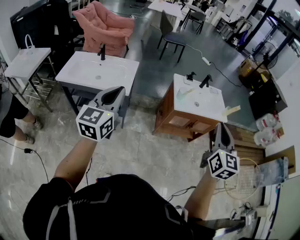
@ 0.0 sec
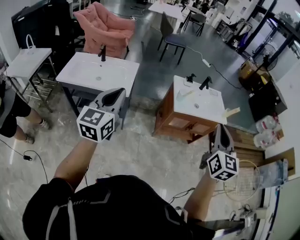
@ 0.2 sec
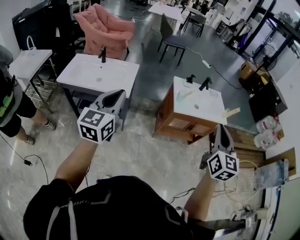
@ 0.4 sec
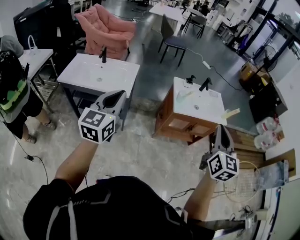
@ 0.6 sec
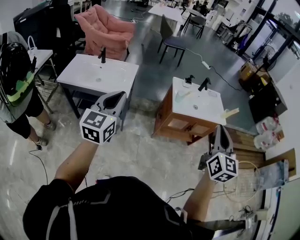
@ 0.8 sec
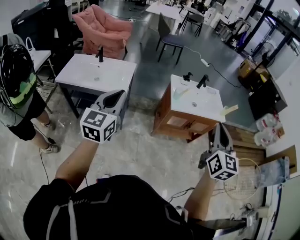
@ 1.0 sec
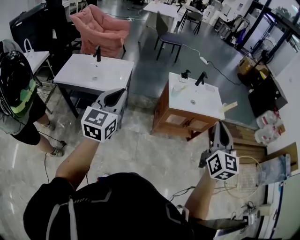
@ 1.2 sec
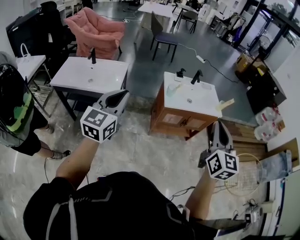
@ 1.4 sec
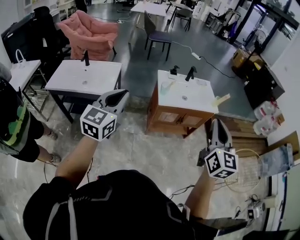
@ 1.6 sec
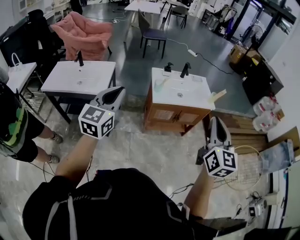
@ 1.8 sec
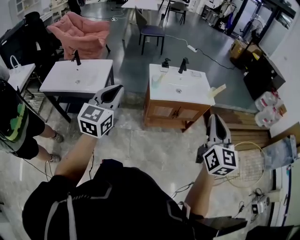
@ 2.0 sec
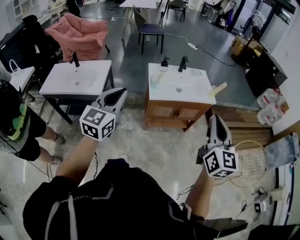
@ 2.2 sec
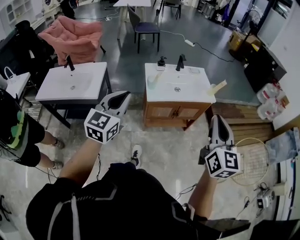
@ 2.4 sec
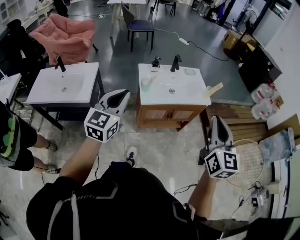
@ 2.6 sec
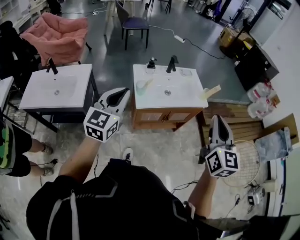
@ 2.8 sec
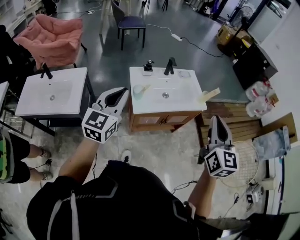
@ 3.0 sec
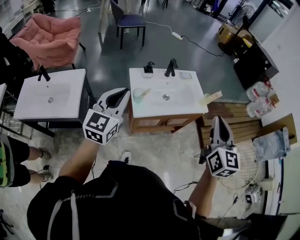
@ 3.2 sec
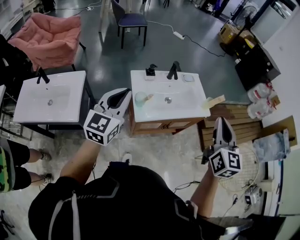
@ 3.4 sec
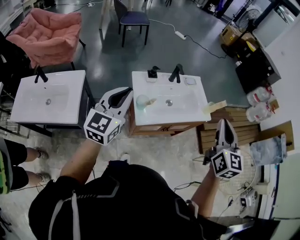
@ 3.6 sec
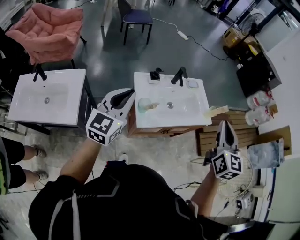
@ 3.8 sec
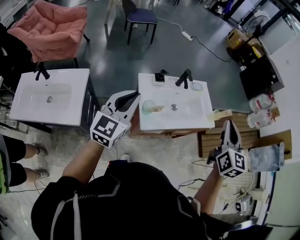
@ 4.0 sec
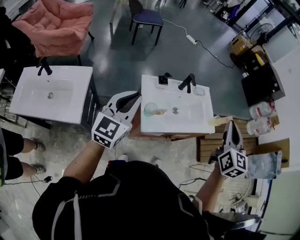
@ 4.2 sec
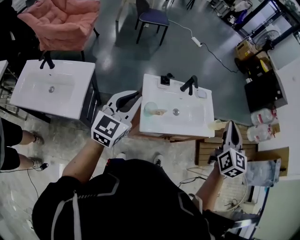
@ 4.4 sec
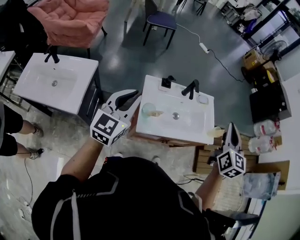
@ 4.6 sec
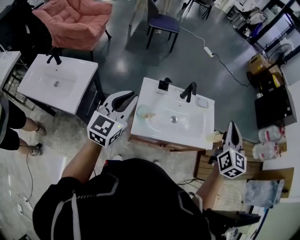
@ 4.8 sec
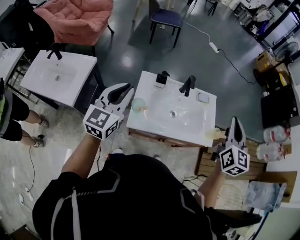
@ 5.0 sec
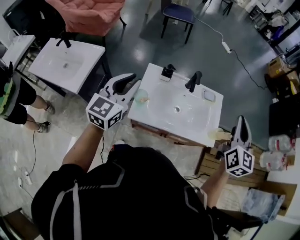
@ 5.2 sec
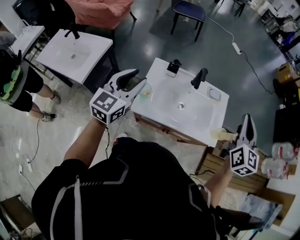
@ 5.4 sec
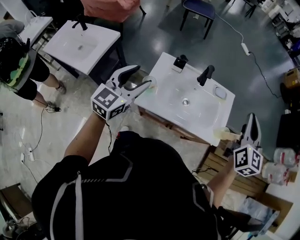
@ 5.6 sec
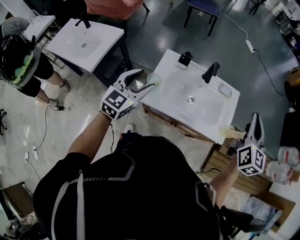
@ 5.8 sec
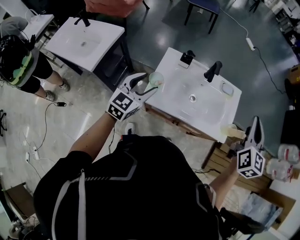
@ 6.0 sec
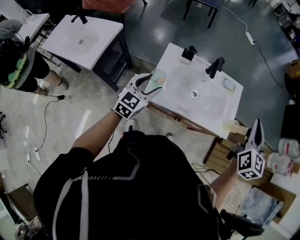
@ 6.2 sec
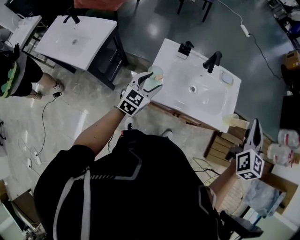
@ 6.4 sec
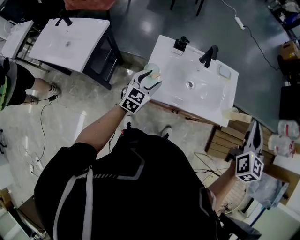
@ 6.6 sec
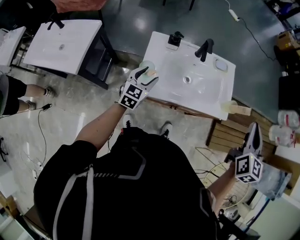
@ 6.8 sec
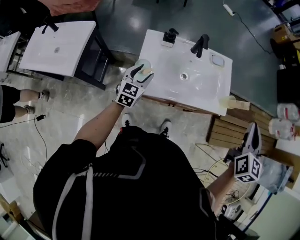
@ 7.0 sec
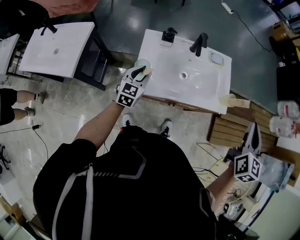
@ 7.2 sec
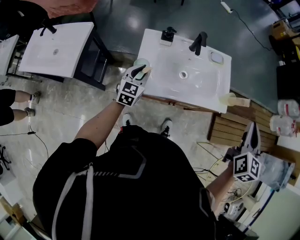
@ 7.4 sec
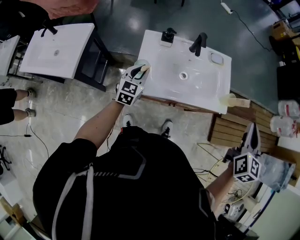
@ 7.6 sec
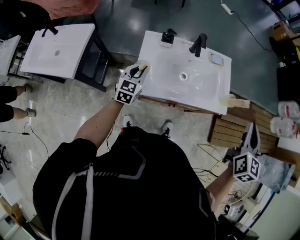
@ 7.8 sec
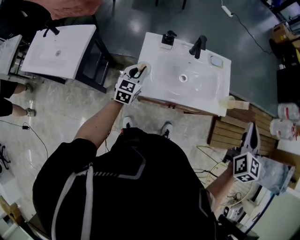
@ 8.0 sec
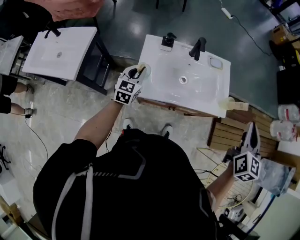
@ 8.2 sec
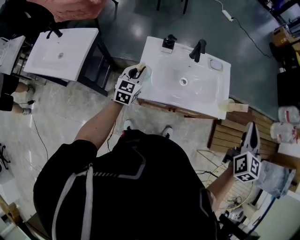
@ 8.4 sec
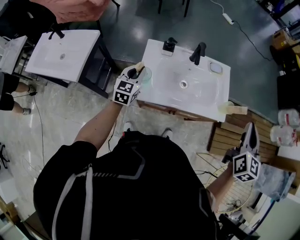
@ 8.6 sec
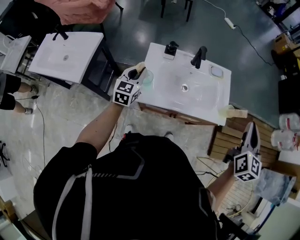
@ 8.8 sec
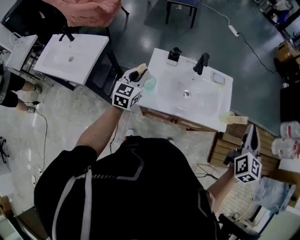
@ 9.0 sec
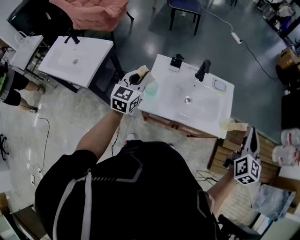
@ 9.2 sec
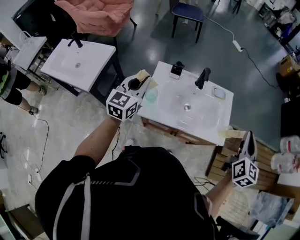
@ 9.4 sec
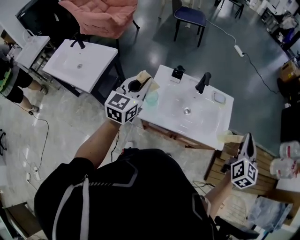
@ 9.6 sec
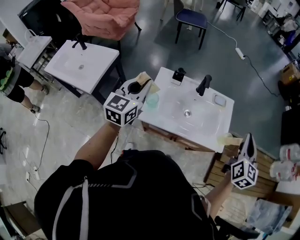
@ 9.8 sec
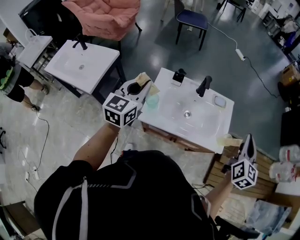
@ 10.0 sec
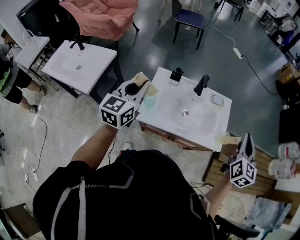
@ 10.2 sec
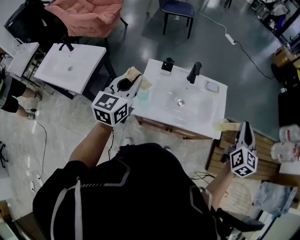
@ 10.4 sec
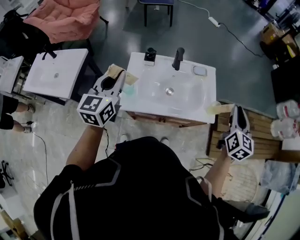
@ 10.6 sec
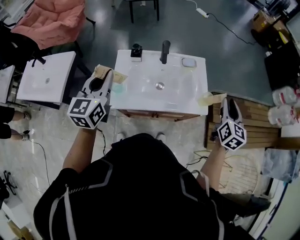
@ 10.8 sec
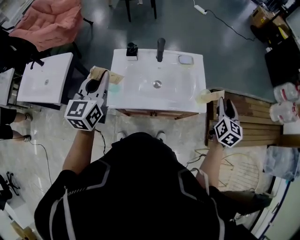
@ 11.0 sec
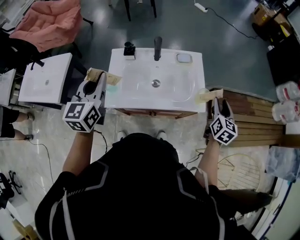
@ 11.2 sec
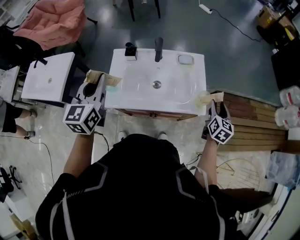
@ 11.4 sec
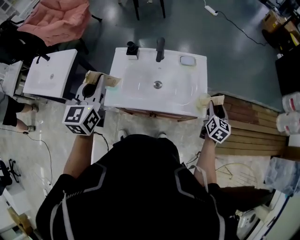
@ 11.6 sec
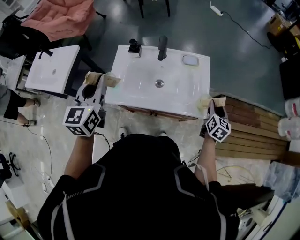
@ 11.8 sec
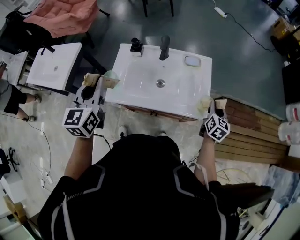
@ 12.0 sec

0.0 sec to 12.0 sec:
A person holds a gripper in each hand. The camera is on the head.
0.0 sec to 1.6 sec: Both grippers move to the right, some 15 cm.
1.6 sec to 3.0 sec: Both grippers travel together forward, about 25 cm.
3.0 sec to 4.4 sec: The left gripper moves forward and to the left, about 15 cm. Meanwhile the right gripper moves forward, approximately 20 cm.
4.4 sec to 6.0 sec: The left gripper goes roughly 15 cm to the right and downward, turns by some 20 degrees, and opens its fingers. The right gripper goes about 20 cm to the right and forward.
6.0 sec to 7.6 sec: The right gripper shifts approximately 10 cm backward and to the right; the left gripper heads downward and forward, covering approximately 15 cm, and closes its fingers.
7.6 sec to 9.0 sec: The left gripper travels upward by roughly 10 cm.
9.0 sec to 10.4 sec: The left gripper moves upward, about 15 cm.
10.4 sec to 12.0 sec: The left gripper goes about 10 cm to the right, while the right gripper moves downward, some 25 cm, and opens, then closes again.

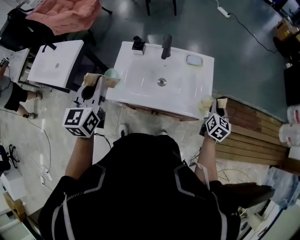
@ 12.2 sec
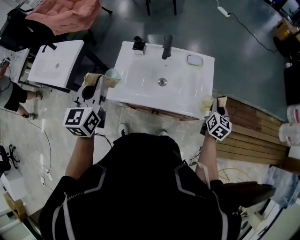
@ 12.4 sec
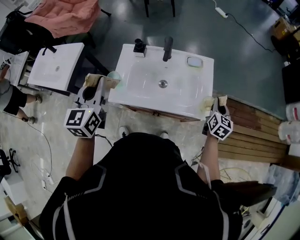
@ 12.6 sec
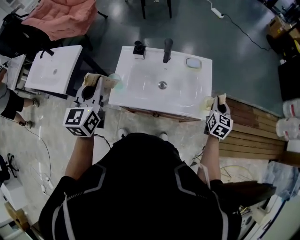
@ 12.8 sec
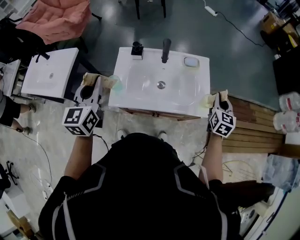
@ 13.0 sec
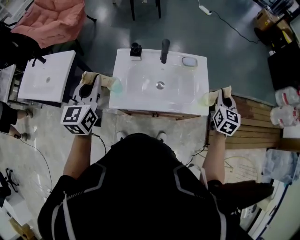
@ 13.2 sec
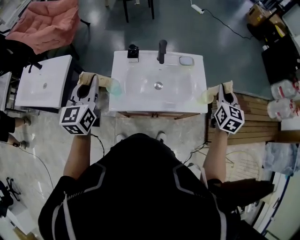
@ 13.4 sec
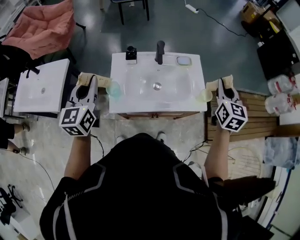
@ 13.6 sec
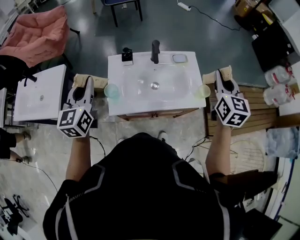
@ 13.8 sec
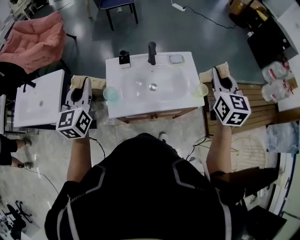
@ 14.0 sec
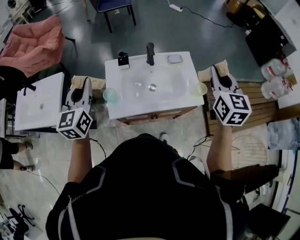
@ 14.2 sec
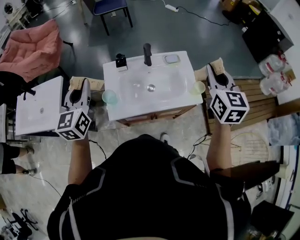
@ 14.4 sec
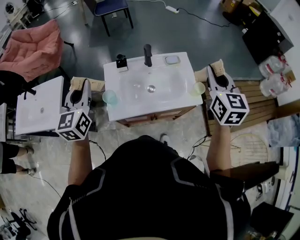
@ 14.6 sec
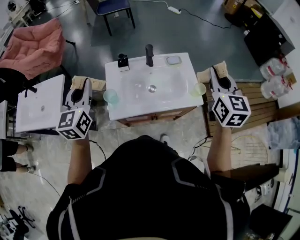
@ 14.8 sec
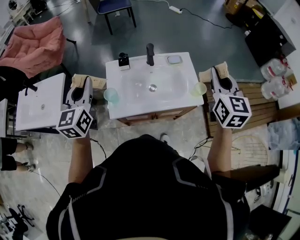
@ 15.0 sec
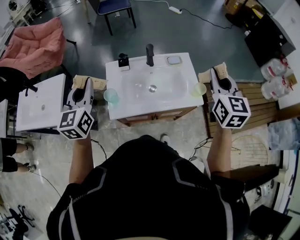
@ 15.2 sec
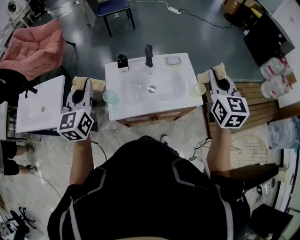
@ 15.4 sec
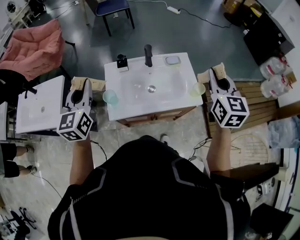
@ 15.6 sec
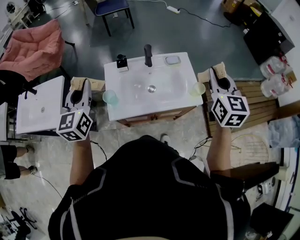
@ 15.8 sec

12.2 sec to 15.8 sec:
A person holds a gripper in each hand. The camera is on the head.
12.2 sec to 14.0 sec: The right gripper heads upward and to the left, covering some 30 cm; the left gripper shifts approximately 10 cm to the left.
14.0 sec to 15.8 sec: The grippers stay close to where they were, moving slightly.

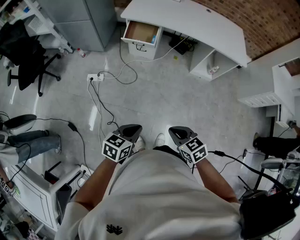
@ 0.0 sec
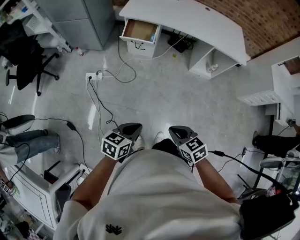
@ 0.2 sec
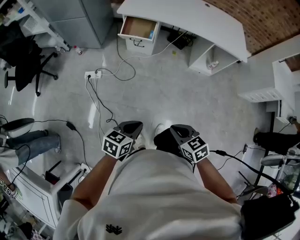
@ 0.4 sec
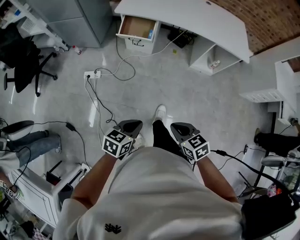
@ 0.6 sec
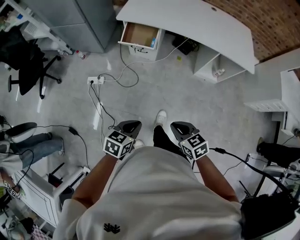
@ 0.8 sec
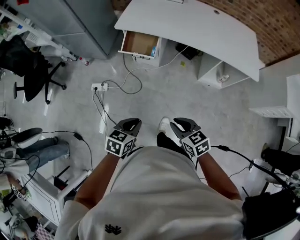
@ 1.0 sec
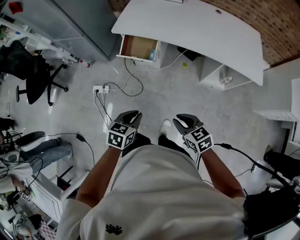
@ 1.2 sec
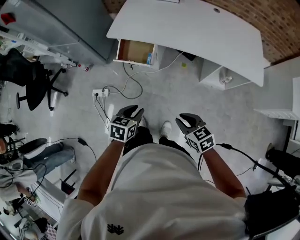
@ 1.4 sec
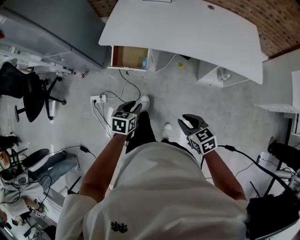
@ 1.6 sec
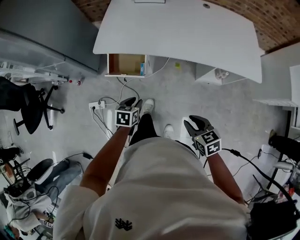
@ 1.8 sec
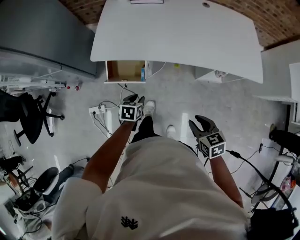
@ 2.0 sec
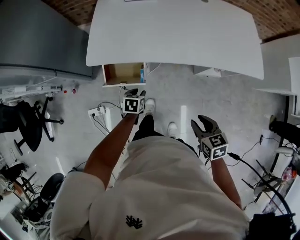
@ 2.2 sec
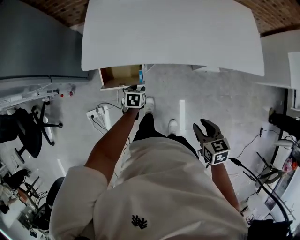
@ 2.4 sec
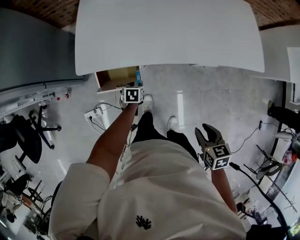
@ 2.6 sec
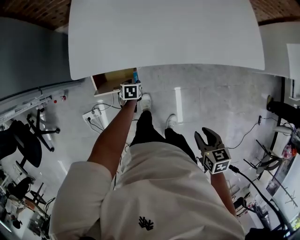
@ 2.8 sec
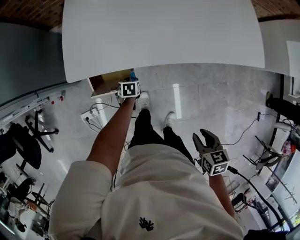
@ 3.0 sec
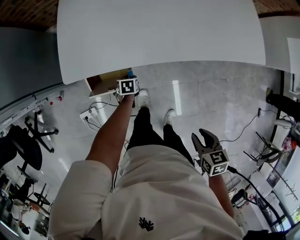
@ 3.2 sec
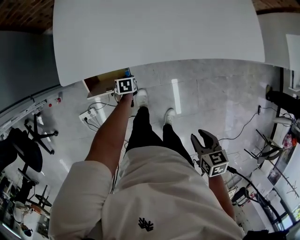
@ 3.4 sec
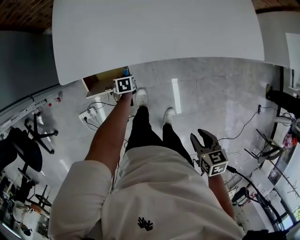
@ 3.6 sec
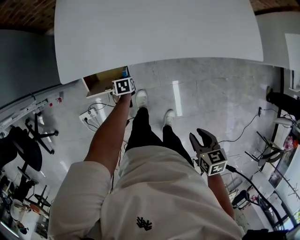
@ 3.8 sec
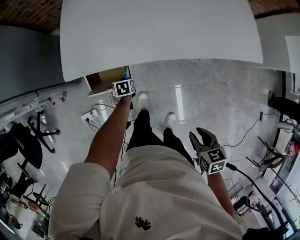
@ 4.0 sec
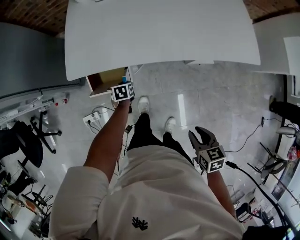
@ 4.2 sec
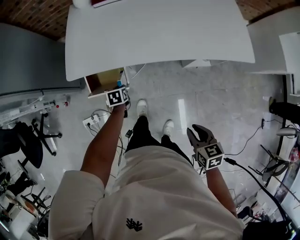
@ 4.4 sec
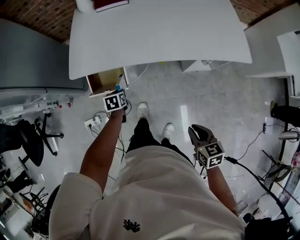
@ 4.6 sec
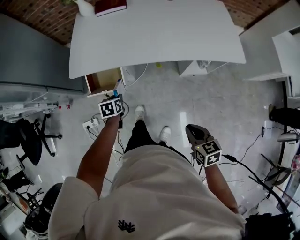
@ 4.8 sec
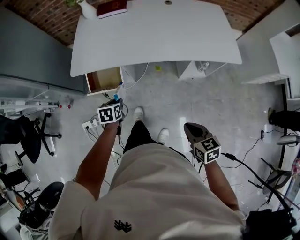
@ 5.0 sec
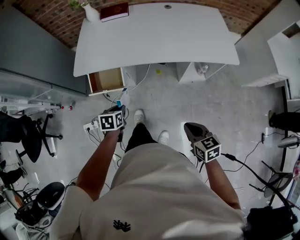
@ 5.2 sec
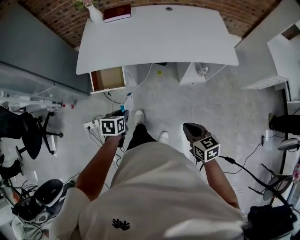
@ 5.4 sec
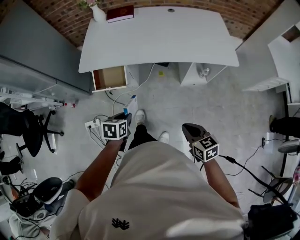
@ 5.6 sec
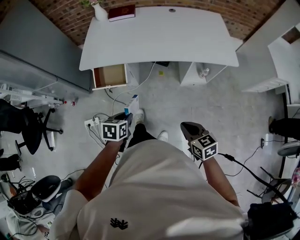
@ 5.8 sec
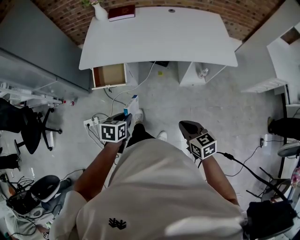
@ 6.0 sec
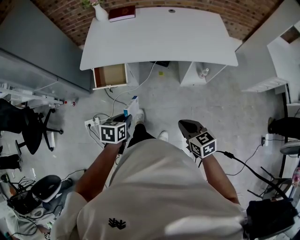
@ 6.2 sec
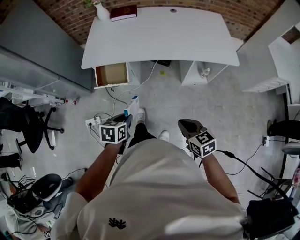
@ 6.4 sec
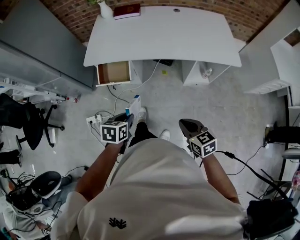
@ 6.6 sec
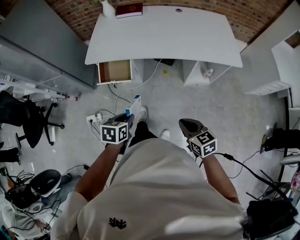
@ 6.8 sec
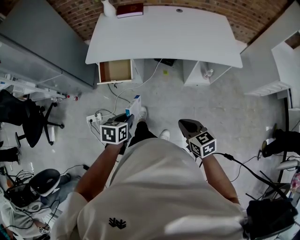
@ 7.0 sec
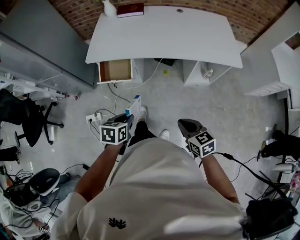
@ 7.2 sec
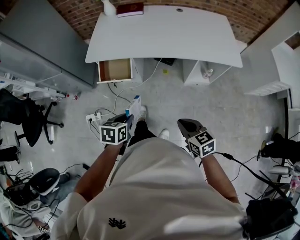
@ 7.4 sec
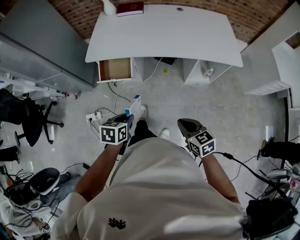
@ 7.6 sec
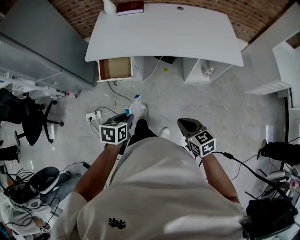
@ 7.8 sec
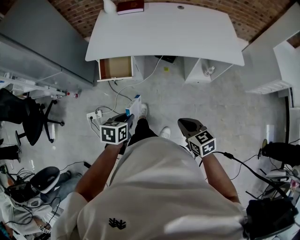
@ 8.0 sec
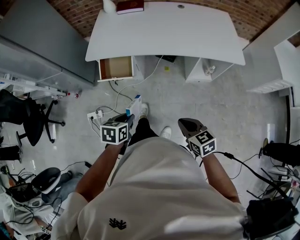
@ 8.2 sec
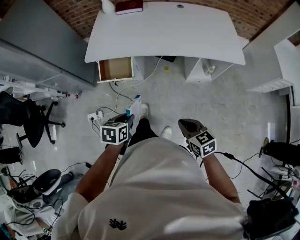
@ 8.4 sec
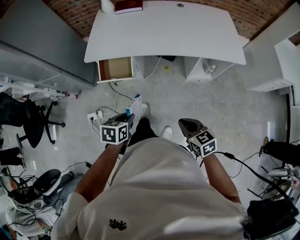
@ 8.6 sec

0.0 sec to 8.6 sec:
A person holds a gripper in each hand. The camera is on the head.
0.0 sec to 1.4 sec: The two grippers travel together, forward, approximately 40 cm. The left gripper opens up.
1.4 sec to 2.8 sec: The left gripper goes some 50 cm forward and downward, and turns by some 20 degrees, while the right gripper shifts roughly 20 cm forward, and changes its angle by some 50 degrees.
2.8 sec to 4.4 sec: The right gripper shifts some 5 cm to the right. Meanwhile the left gripper goes roughly 10 cm upward.
4.4 sec to 5.8 sec: The right gripper goes approximately 15 cm backward and to the right, turns by some 20 degrees, and closes its fingers. The left gripper travels backward and upward by roughly 40 cm.
5.8 sec to 7.2 sec: The left gripper moves approximately 5 cm.
7.2 sec to 8.6 sec: The grippers stay close to where they were, moving slightly.
